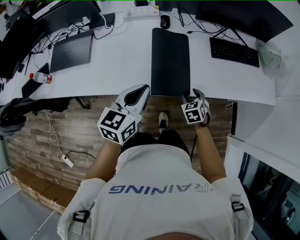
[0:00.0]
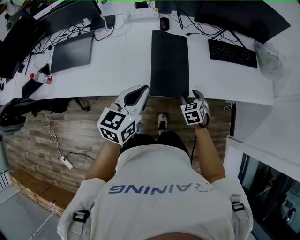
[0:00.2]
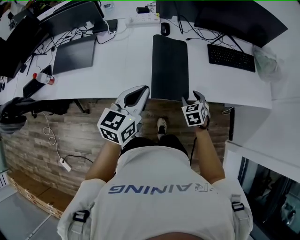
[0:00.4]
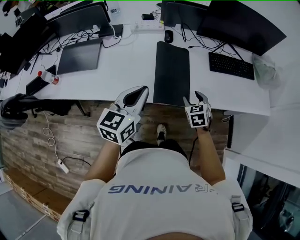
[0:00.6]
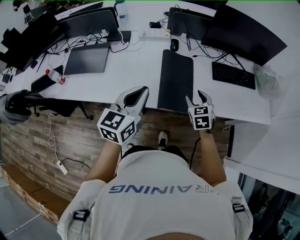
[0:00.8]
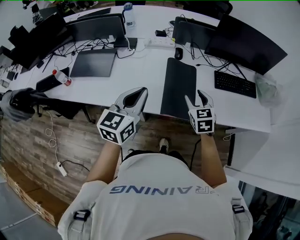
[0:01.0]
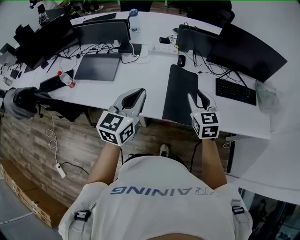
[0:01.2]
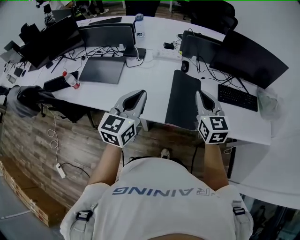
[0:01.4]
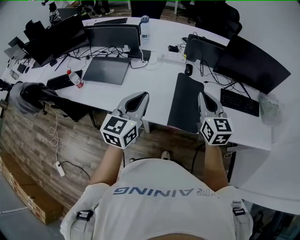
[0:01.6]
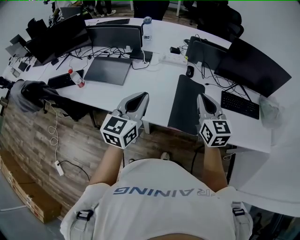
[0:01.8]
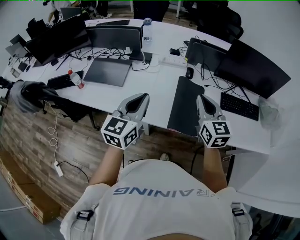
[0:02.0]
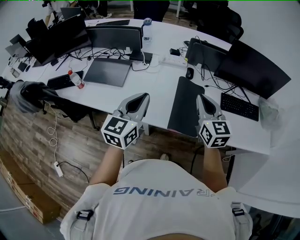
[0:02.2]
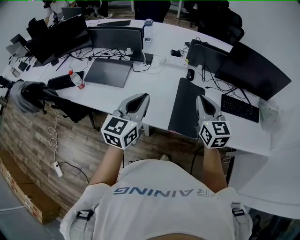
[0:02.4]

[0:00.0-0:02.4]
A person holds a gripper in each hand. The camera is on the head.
0:00.0 to 0:01.2: The right gripper moves upward, some 25 cm, and tips its fingers upward by about 30 degrees. Meanwhile the left gripper moves upward and to the left, roughly 15 cm.
0:01.2 to 0:02.4: The right gripper is displaced upward by about 5 cm, and closes.

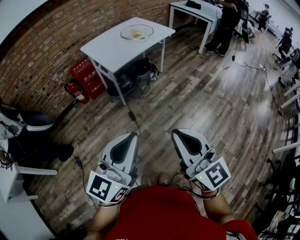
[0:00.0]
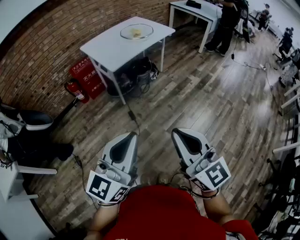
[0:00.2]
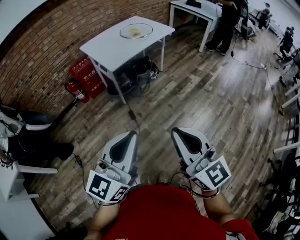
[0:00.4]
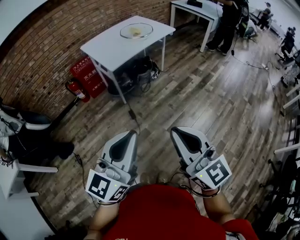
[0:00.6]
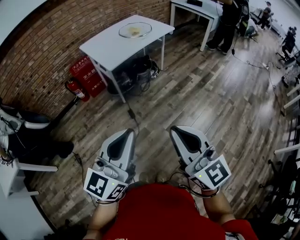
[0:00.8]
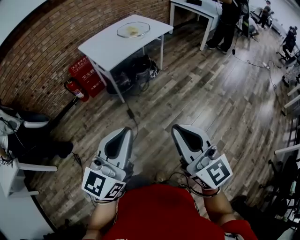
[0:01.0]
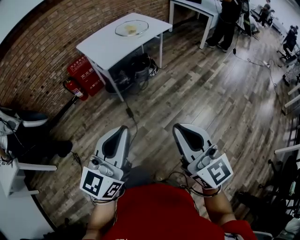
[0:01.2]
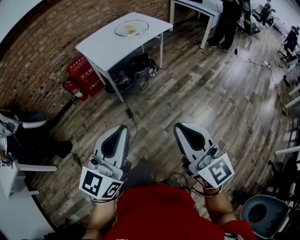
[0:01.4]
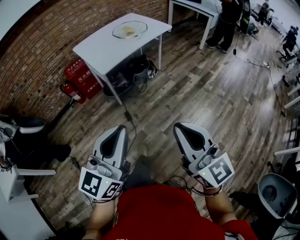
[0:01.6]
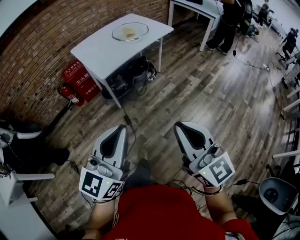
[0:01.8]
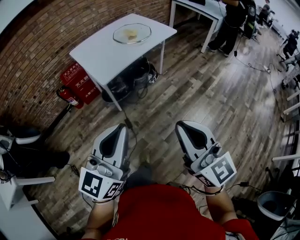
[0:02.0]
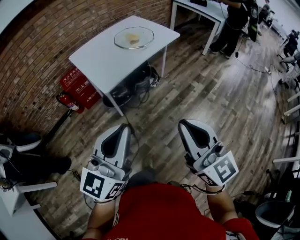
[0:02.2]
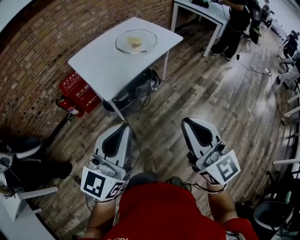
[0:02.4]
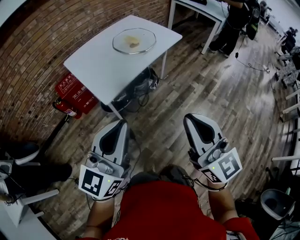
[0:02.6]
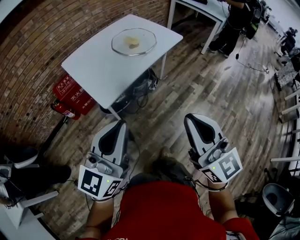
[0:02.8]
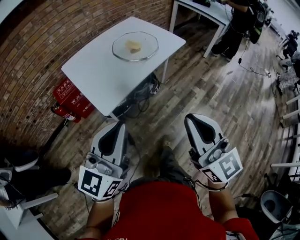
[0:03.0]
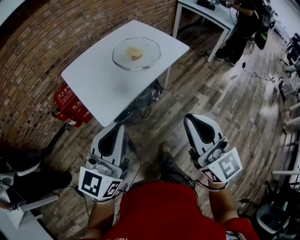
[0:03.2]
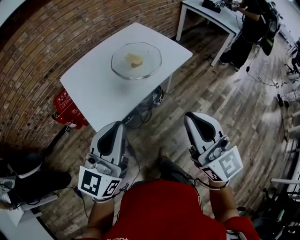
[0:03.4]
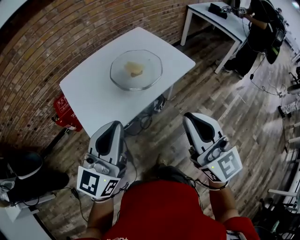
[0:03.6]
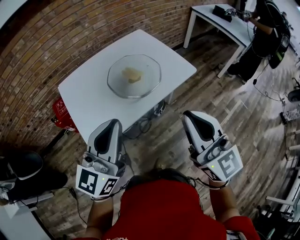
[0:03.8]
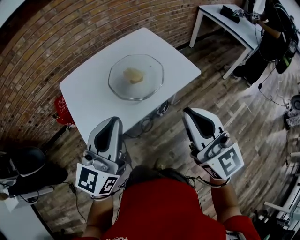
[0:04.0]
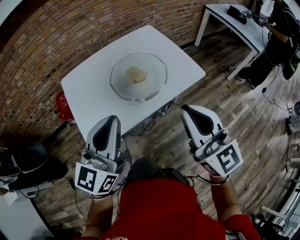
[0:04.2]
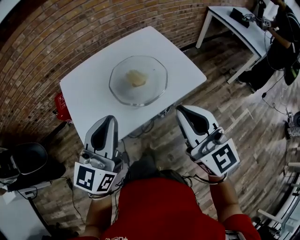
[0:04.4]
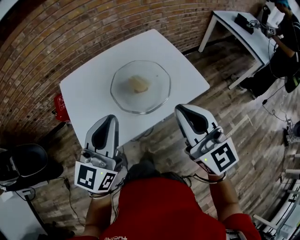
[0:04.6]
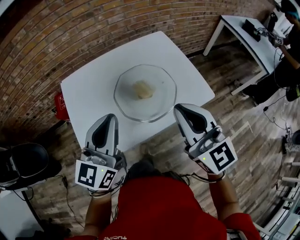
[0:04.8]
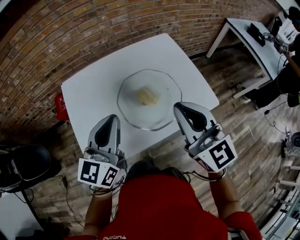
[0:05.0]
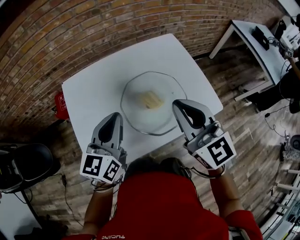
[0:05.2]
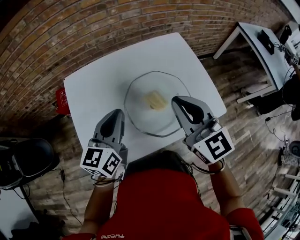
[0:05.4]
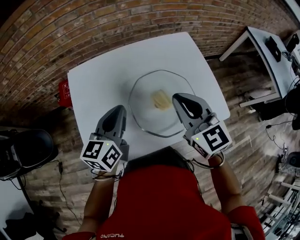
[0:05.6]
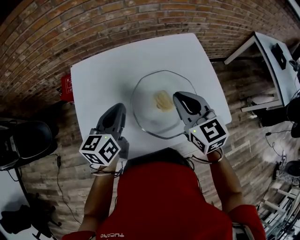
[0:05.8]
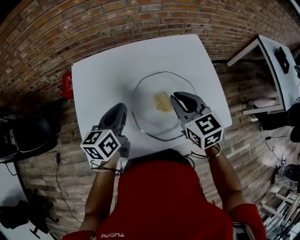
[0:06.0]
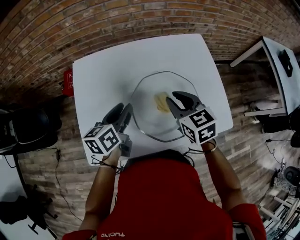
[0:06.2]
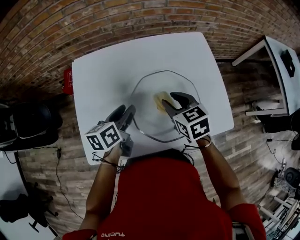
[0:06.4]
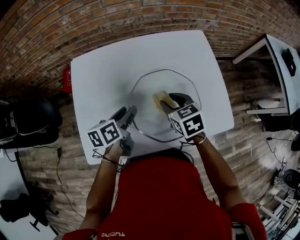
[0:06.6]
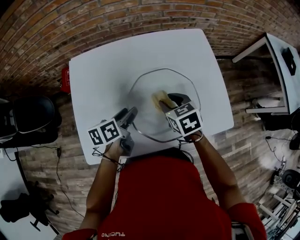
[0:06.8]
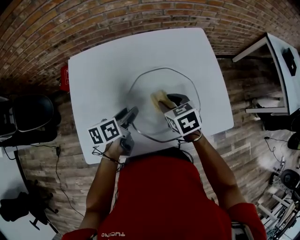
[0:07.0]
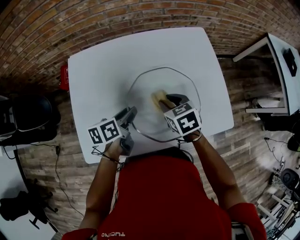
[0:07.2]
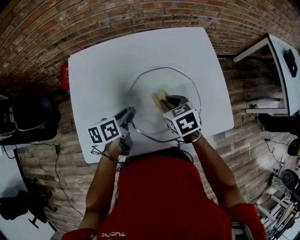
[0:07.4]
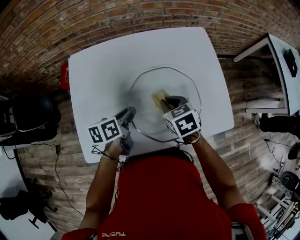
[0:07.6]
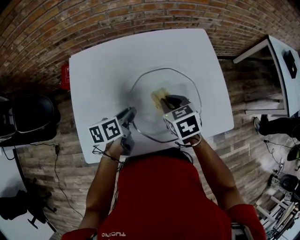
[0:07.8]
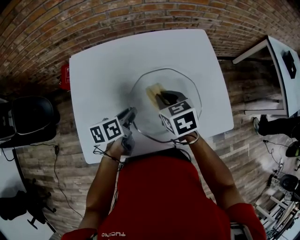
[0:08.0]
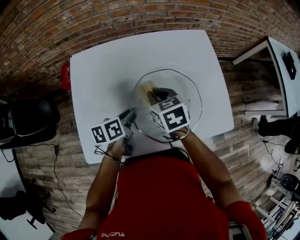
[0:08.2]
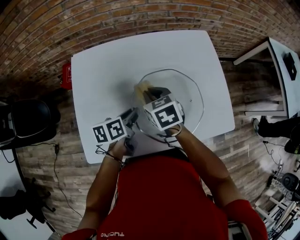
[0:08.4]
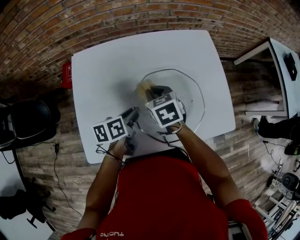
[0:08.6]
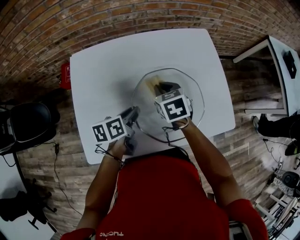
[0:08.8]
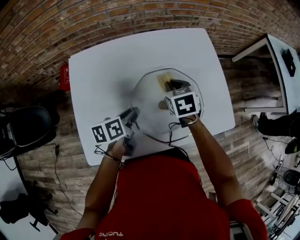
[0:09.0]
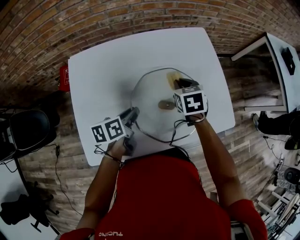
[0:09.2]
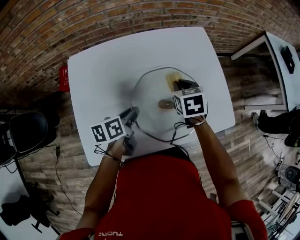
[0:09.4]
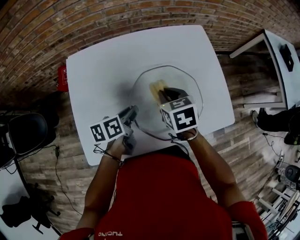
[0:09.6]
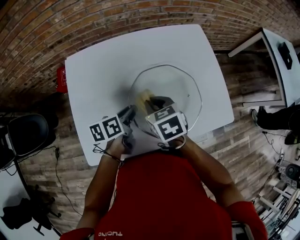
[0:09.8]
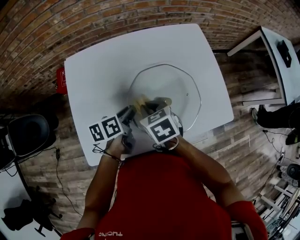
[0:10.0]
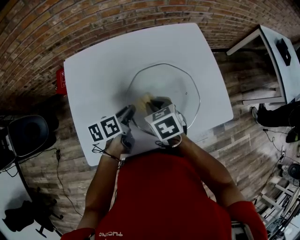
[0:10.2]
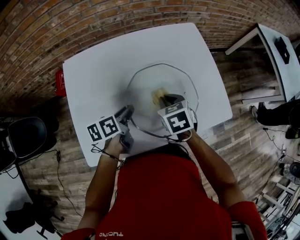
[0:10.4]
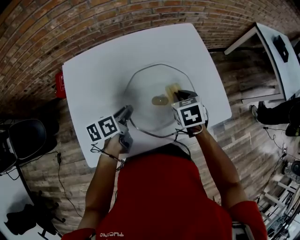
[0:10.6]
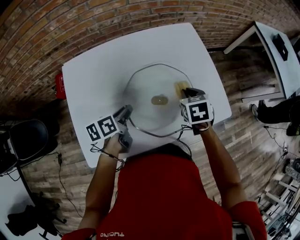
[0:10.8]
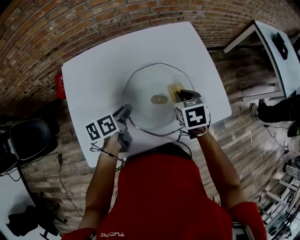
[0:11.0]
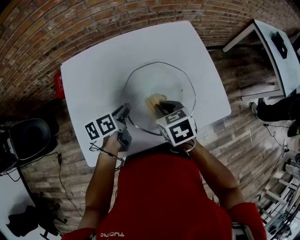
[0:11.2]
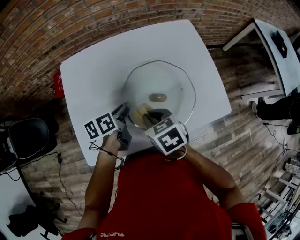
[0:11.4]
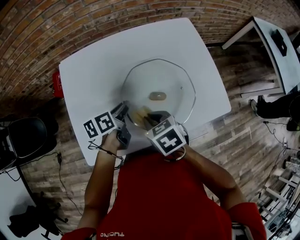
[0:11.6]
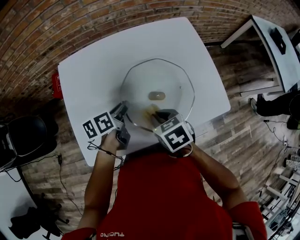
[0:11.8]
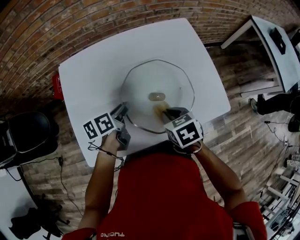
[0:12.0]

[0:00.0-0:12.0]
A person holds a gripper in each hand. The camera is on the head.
0:00.0 to 0:01.6: The right gripper goes roughly 10 cm to the right and forward. Meanwhile the left gripper travels forward and to the right by roughly 10 cm.
0:01.6 to 0:03.0: The two grippers go some 35 cm forward.
0:03.0 to 0:04.4: The two grippers go about 35 cm forward. The left gripper rotates roughly 20 degrees.
0:04.4 to 0:06.0: The grippers both shift forward and downward by some 30 cm. The left gripper changes its angle by some 40 degrees. The right gripper angles its fingers downward, by about 30 degrees.
0:06.0 to 0:07.6: Both grippers move downward, roughly 10 cm. The left gripper swivels roughly 30 degrees, and opens, then closes again; the right gripper changes its angle by about 30 degrees, and opens, then closes again.
0:07.6 to 0:09.0: The right gripper moves forward, some 10 cm, and moves roughly 10 cm to the left and comes back.
0:09.0 to 0:10.4: The right gripper goes some 10 cm backward.
0:10.4 to 0:12.0: The right gripper moves left and right over roughly 15 cm, changing direction 2 times.

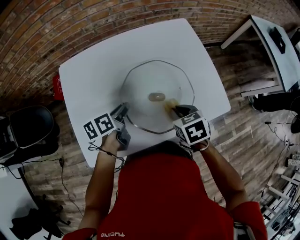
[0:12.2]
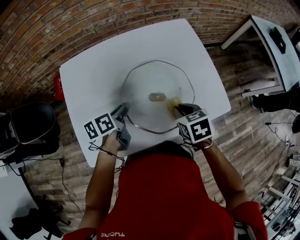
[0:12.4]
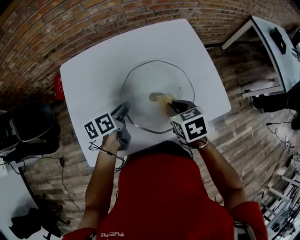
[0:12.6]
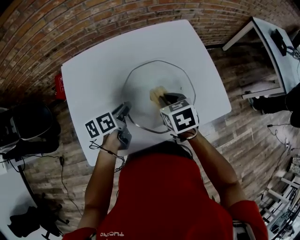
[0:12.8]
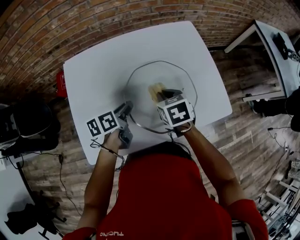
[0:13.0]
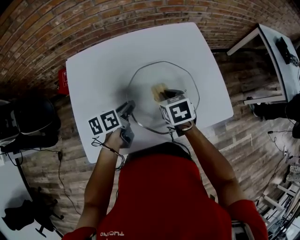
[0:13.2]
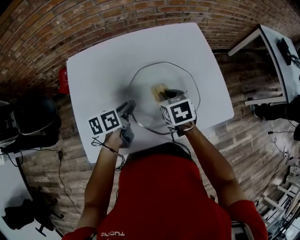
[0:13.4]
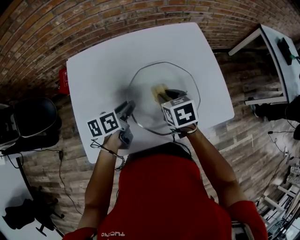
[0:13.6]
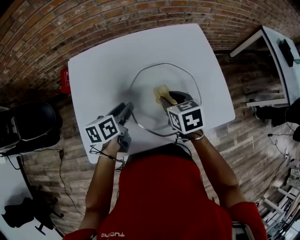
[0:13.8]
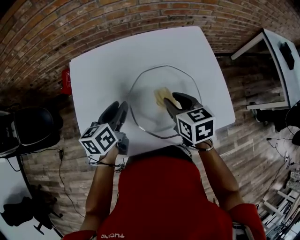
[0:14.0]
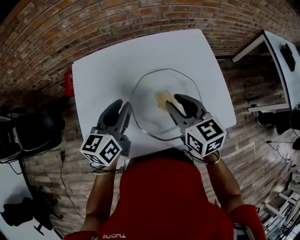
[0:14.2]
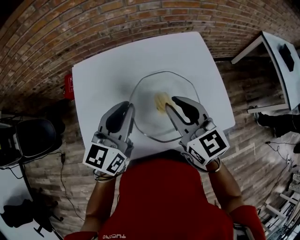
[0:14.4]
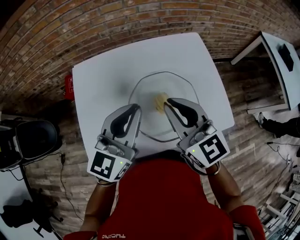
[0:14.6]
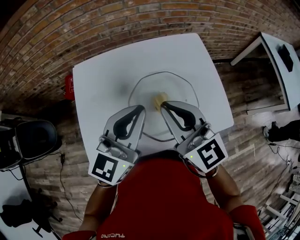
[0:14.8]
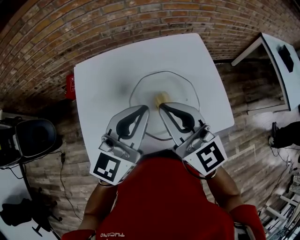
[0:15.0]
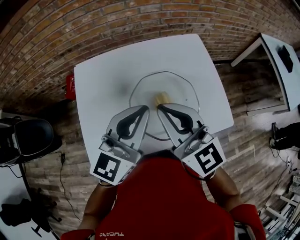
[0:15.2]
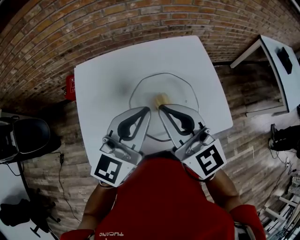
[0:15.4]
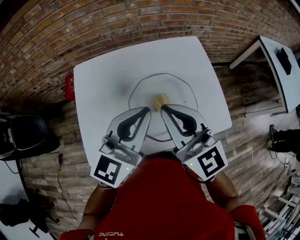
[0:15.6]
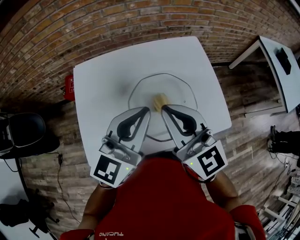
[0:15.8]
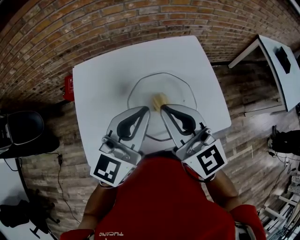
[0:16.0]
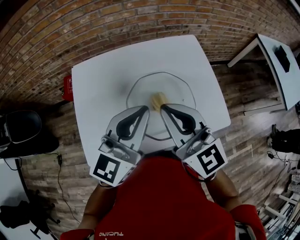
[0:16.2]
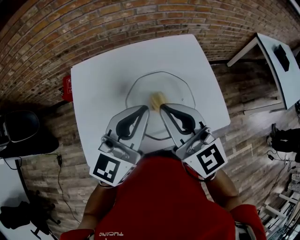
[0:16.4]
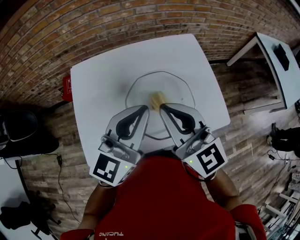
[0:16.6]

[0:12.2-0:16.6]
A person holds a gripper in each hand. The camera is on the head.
0:12.2 to 0:13.6: The right gripper shifts approximately 10 cm forward and to the left.
0:13.6 to 0:15.2: Both grippers move upward, some 25 cm. The left gripper rolls clockwise, seen from behind, by roughly 50 degrees, and closes up, while the right gripper points its fingers about 50 degrees further upward, and closes up.
0:15.2 to 0:16.6: The grippers make only small movements.

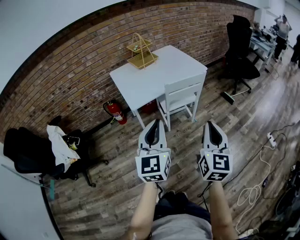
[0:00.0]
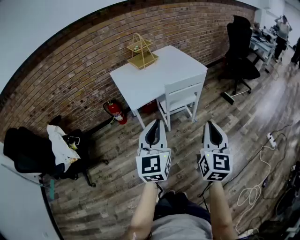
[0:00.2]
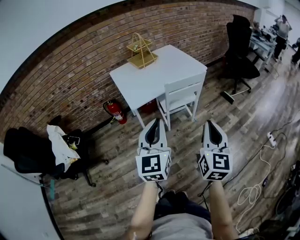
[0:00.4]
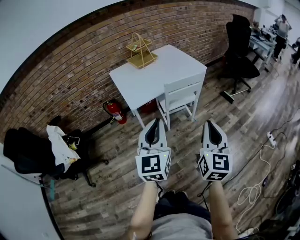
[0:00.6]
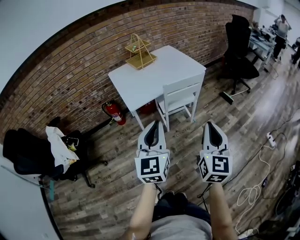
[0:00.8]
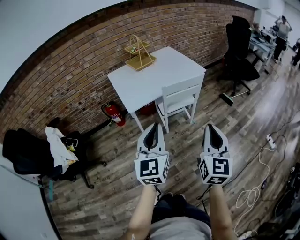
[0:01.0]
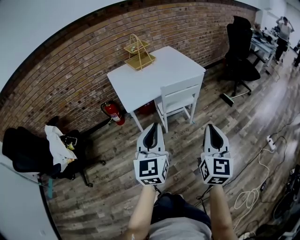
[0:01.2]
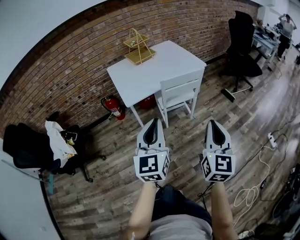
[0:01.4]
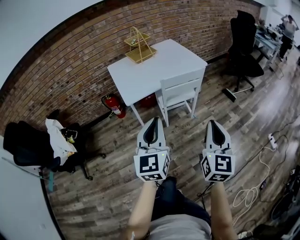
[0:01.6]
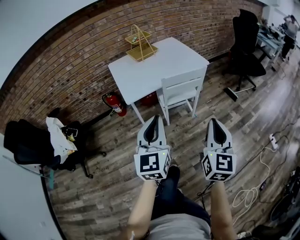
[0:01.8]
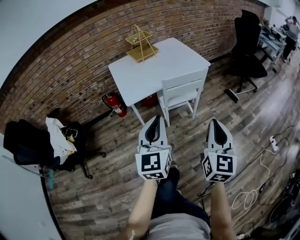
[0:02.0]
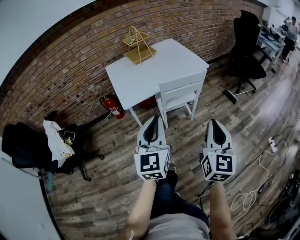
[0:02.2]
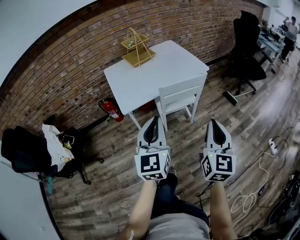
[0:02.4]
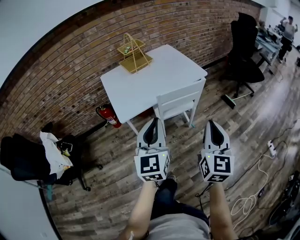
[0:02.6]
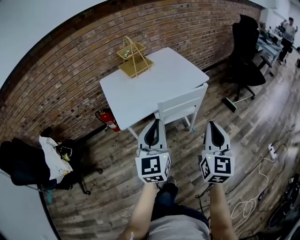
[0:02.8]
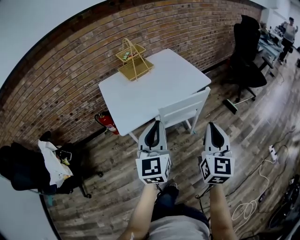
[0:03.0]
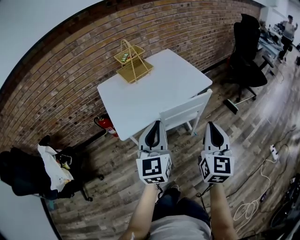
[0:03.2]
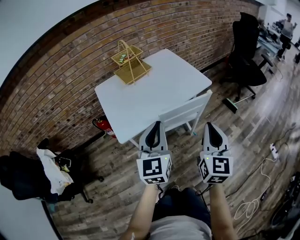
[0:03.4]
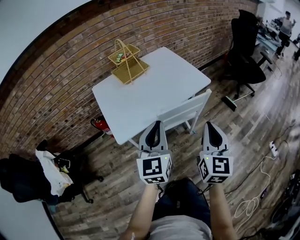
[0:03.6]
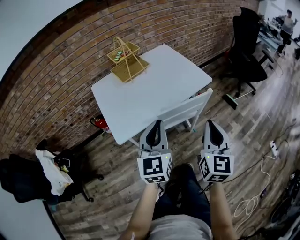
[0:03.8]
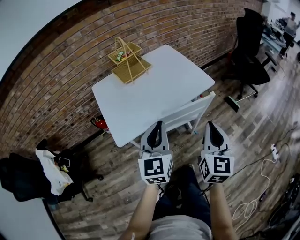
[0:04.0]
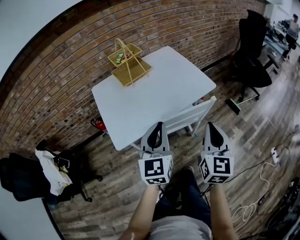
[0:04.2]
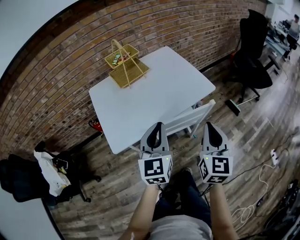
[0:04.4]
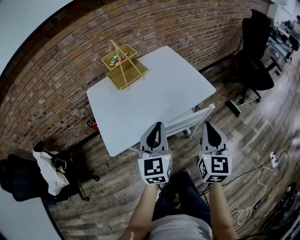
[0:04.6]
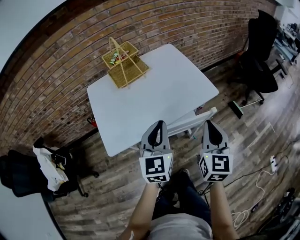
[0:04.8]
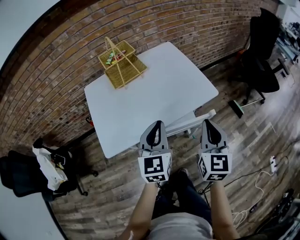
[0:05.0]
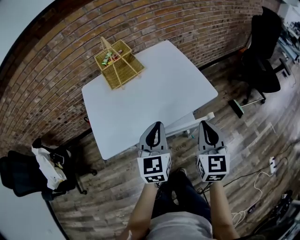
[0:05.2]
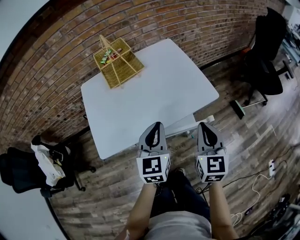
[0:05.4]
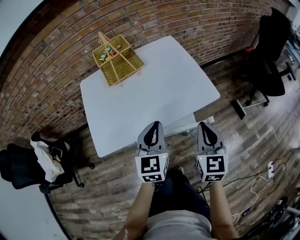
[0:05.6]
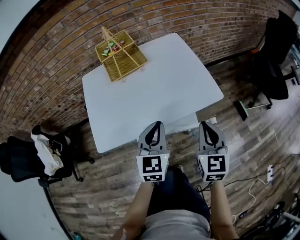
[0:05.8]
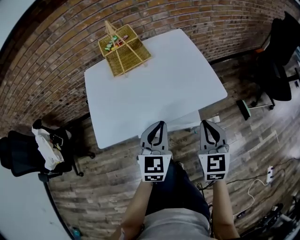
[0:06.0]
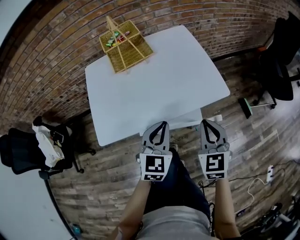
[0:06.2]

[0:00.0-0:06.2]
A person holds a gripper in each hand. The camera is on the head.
0:00.0 to 0:01.6: The left gripper changes place by some 5 cm; the right gripper is displaced to the right by some 5 cm.
0:01.6 to 0:03.2: The two grippers go some 25 cm forward.
0:03.2 to 0:04.6: The two grippers go some 15 cm forward.
0:04.6 to 0:06.2: The left gripper is displaced downward, forward and to the right by approximately 15 cm, while the right gripper goes roughly 15 cm forward and downward, and changes its angle by some 30 degrees.
